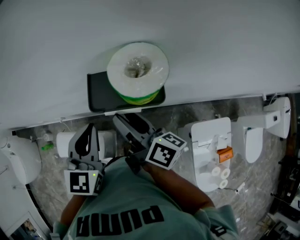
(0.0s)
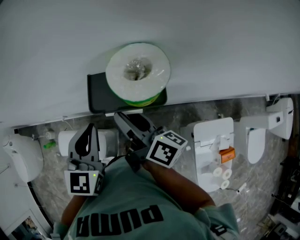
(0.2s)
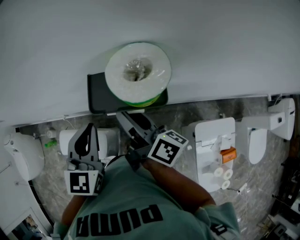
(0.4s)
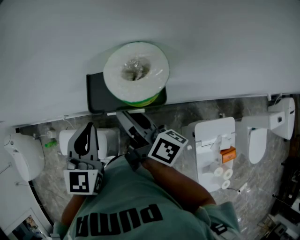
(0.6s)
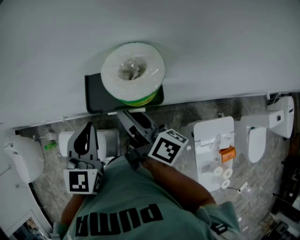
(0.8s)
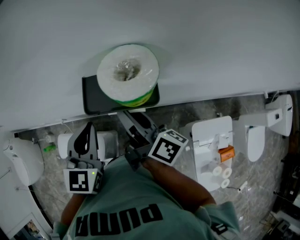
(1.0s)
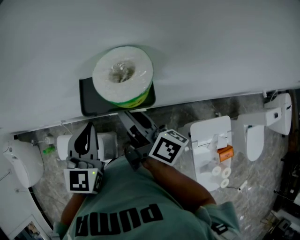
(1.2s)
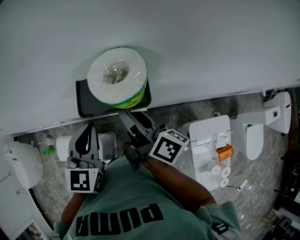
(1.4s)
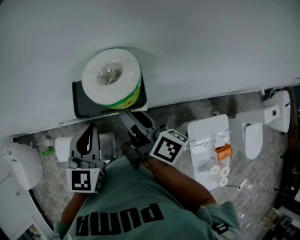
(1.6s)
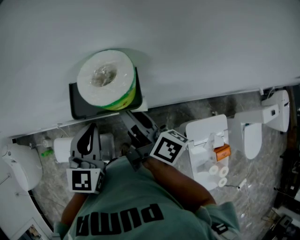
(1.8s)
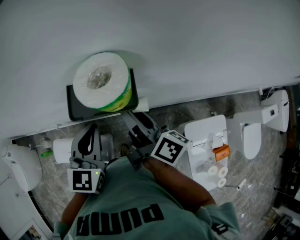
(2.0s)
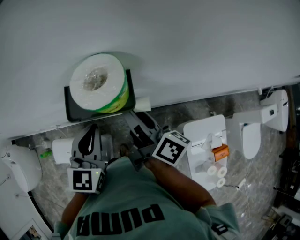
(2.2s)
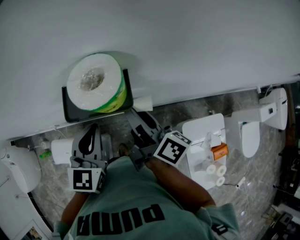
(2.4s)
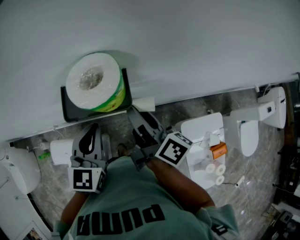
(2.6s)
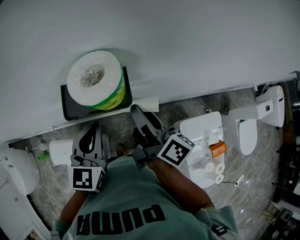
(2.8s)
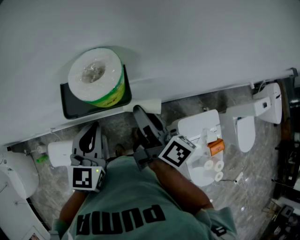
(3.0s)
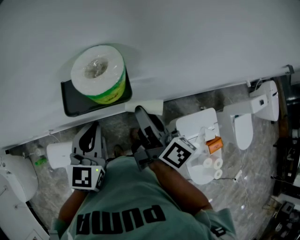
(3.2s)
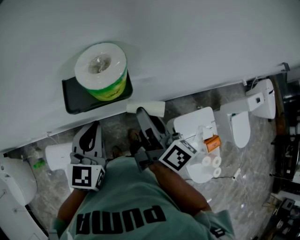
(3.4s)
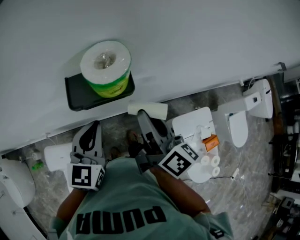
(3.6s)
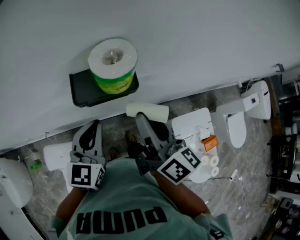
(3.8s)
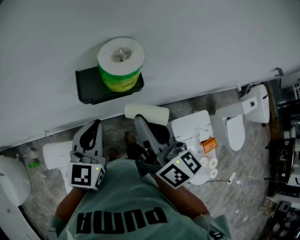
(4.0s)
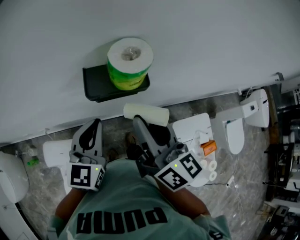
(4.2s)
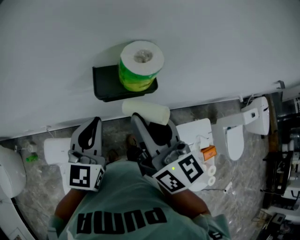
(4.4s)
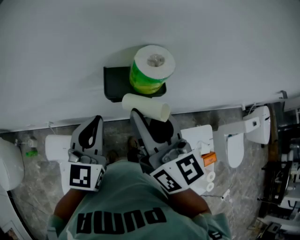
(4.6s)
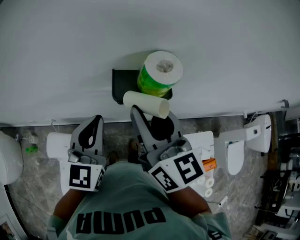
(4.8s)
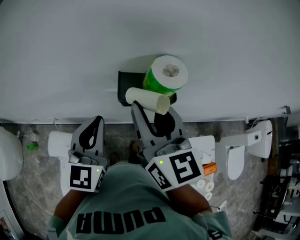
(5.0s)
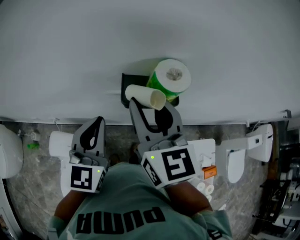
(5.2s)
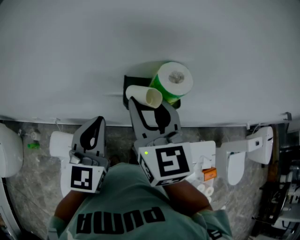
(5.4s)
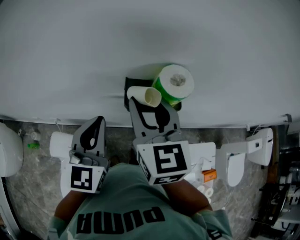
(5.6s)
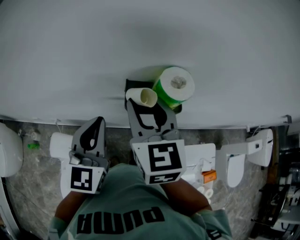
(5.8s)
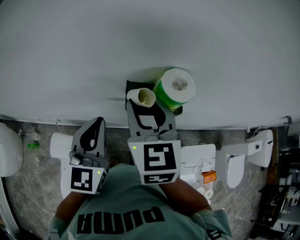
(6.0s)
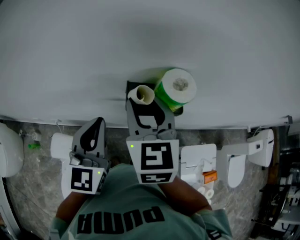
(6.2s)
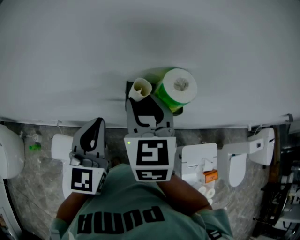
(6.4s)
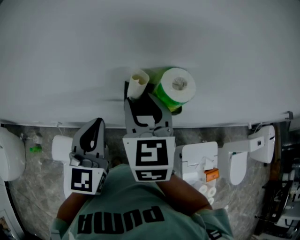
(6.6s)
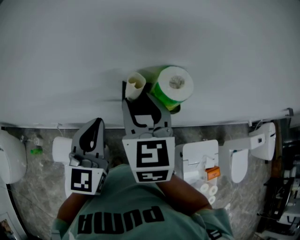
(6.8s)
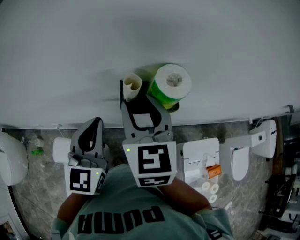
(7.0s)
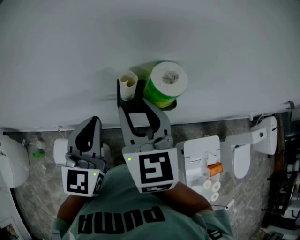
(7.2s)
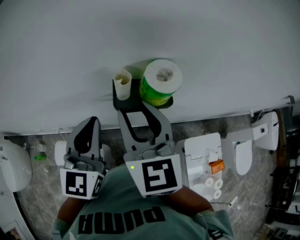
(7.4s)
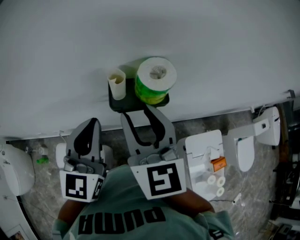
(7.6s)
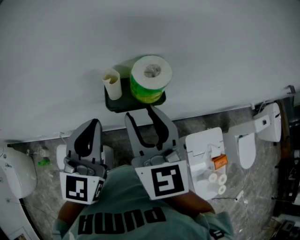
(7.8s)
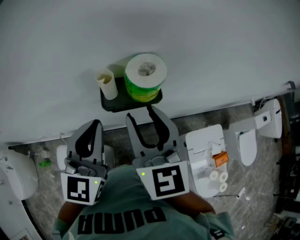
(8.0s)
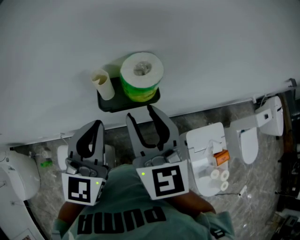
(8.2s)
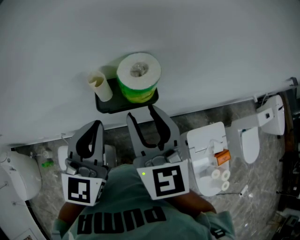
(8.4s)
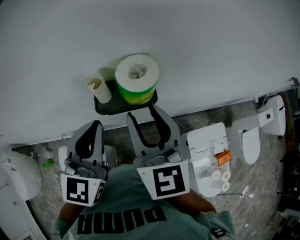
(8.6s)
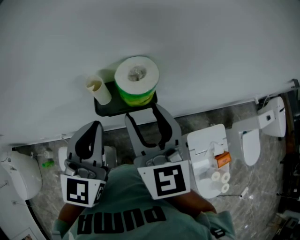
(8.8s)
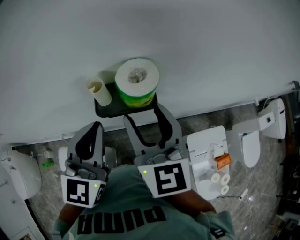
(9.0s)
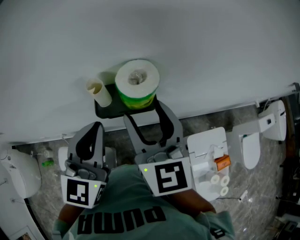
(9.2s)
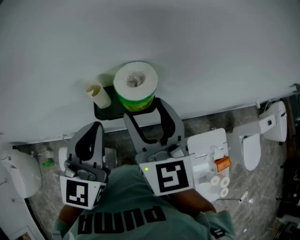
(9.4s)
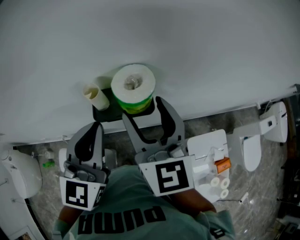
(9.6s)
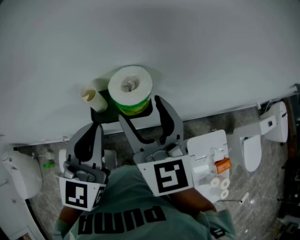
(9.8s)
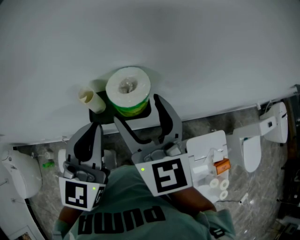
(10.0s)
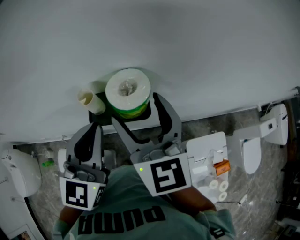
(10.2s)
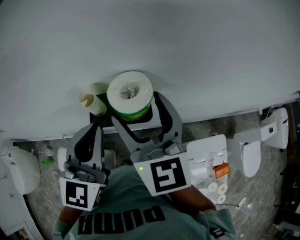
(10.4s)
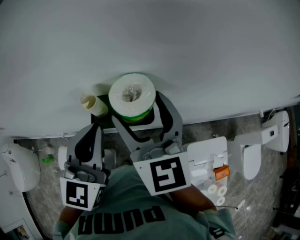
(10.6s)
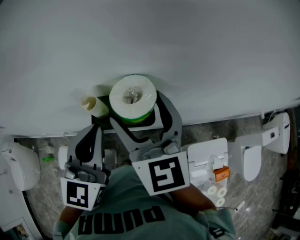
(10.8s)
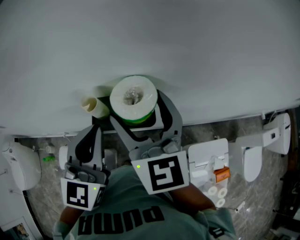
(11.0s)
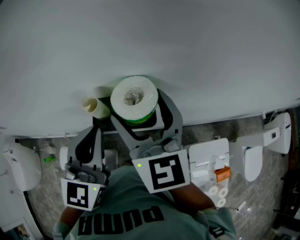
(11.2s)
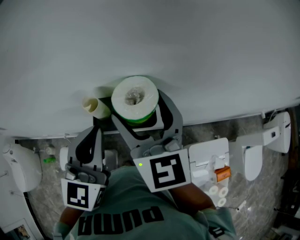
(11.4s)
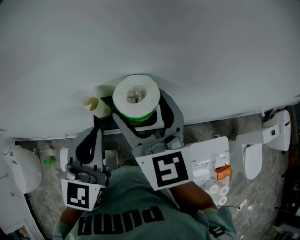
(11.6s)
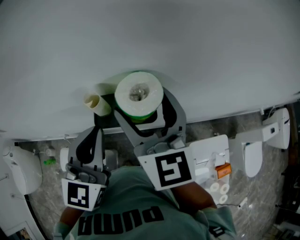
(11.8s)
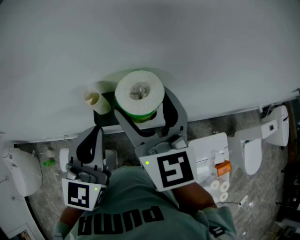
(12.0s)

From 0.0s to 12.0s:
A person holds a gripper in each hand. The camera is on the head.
From 0.0s to 1.6s: The right gripper travels to the right by about 5 cm.
From 1.6s to 3.0s: The right gripper moves to the right, roughly 10 cm.
From 3.0s to 4.4s: The left gripper travels to the left by some 5 cm. The right gripper is displaced upward, to the left and backward by some 15 cm, and swivels some 40 degrees.
From 4.4s to 6.0s: The left gripper heads to the left, covering about 5 cm, while the right gripper travels forward and to the left by roughly 10 cm, and changes its angle by roughly 40 degrees.
From 6.0s to 7.6s: The right gripper changes place by roughly 5 cm.
From 7.6s to 9.0s: Both grippers travel together to the right, some 5 cm.
From 9.0s to 10.4s: There are only small adjustments of the grippers.
From 10.4s to 12.0s: The grippers make only small movements.

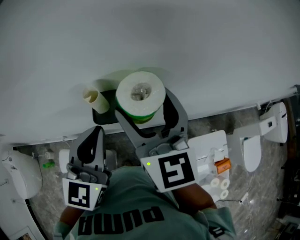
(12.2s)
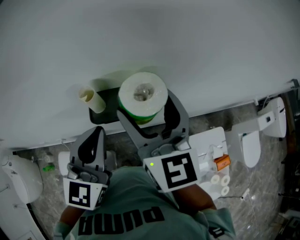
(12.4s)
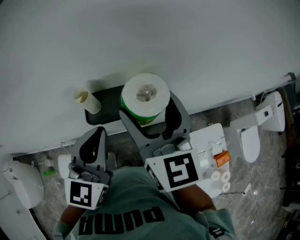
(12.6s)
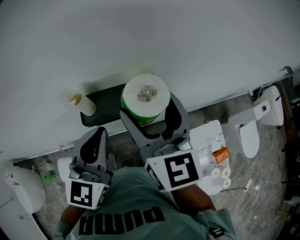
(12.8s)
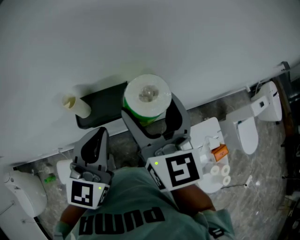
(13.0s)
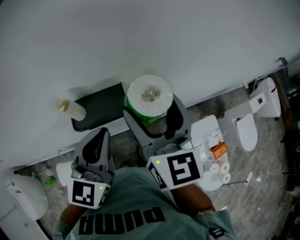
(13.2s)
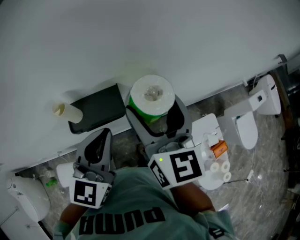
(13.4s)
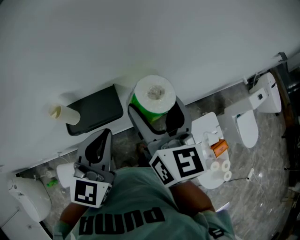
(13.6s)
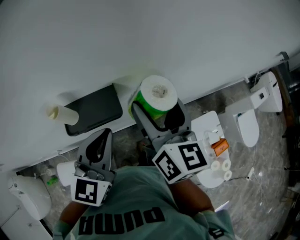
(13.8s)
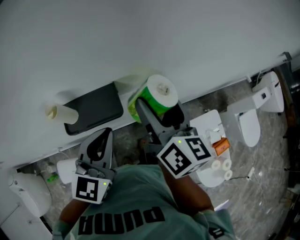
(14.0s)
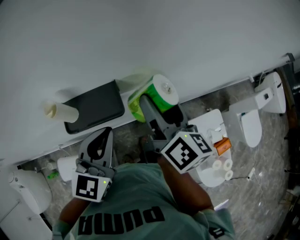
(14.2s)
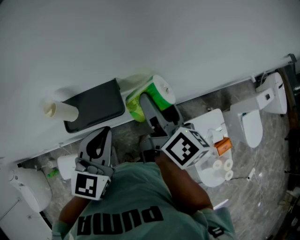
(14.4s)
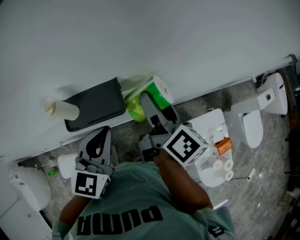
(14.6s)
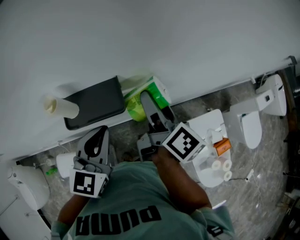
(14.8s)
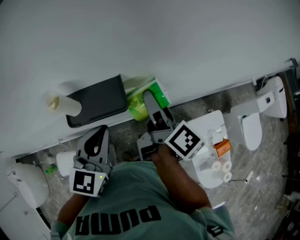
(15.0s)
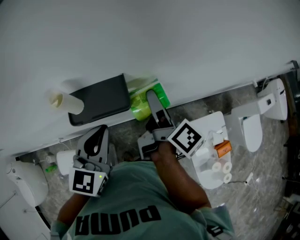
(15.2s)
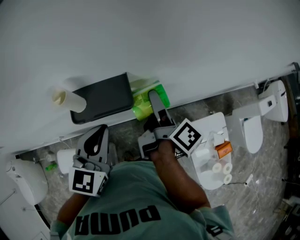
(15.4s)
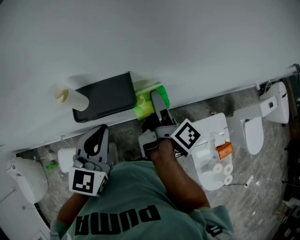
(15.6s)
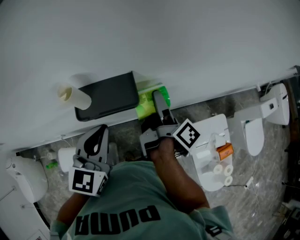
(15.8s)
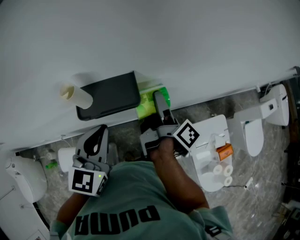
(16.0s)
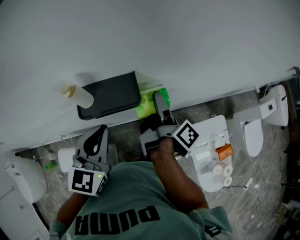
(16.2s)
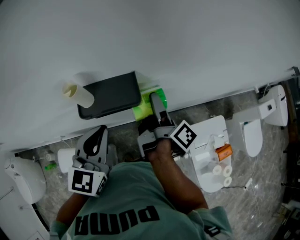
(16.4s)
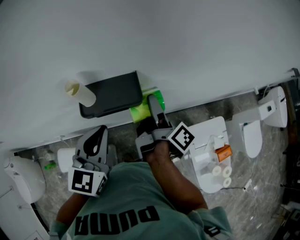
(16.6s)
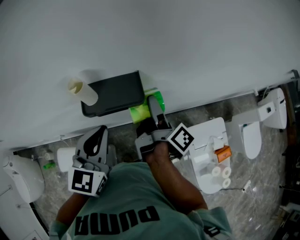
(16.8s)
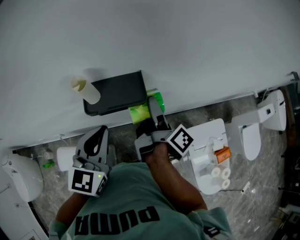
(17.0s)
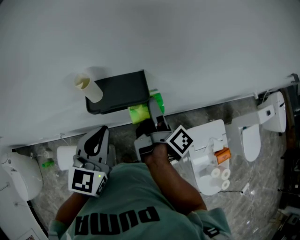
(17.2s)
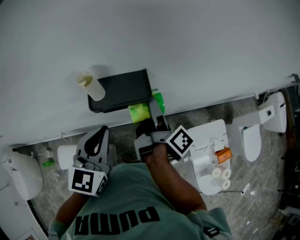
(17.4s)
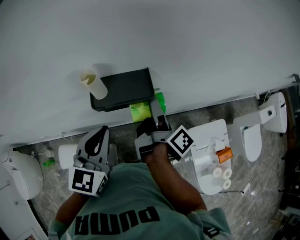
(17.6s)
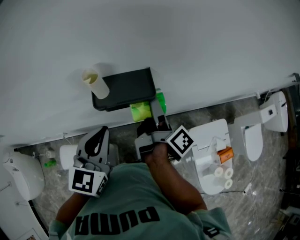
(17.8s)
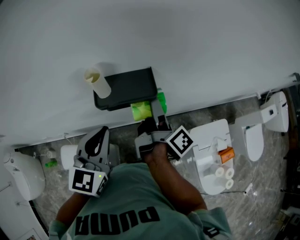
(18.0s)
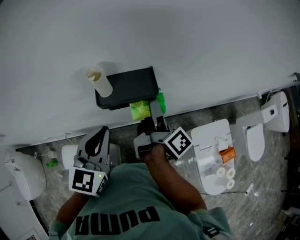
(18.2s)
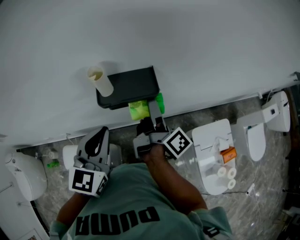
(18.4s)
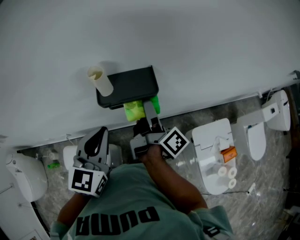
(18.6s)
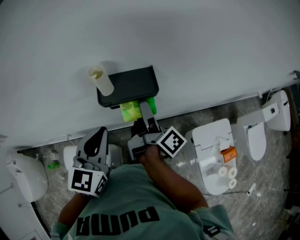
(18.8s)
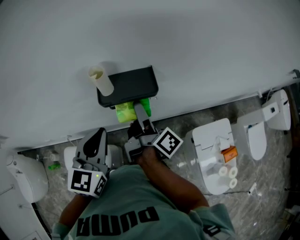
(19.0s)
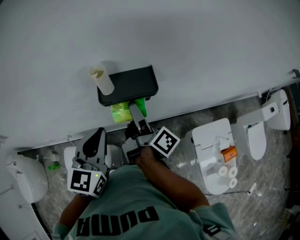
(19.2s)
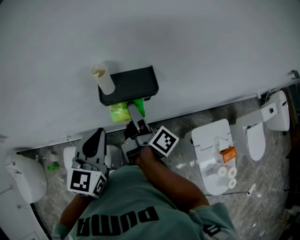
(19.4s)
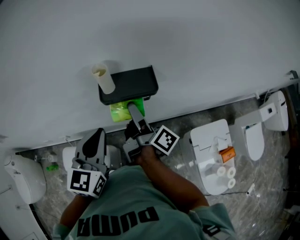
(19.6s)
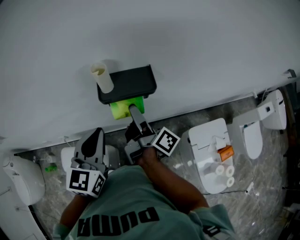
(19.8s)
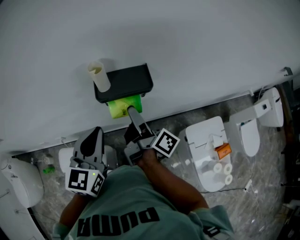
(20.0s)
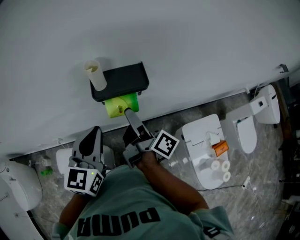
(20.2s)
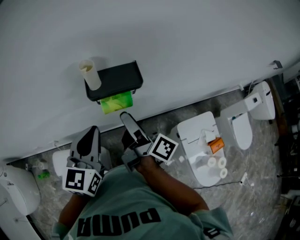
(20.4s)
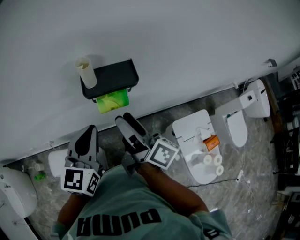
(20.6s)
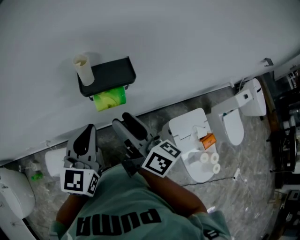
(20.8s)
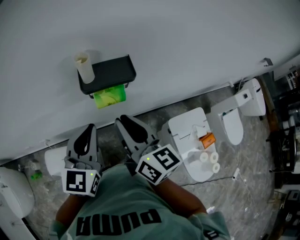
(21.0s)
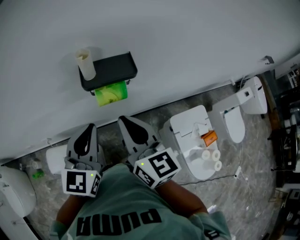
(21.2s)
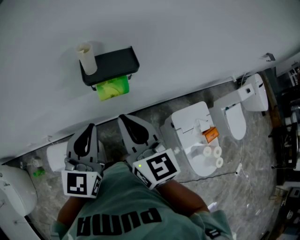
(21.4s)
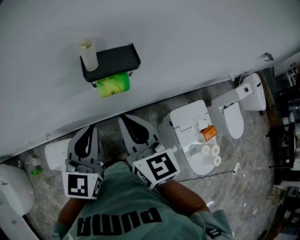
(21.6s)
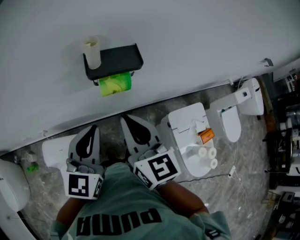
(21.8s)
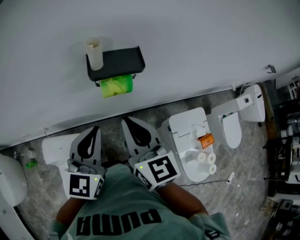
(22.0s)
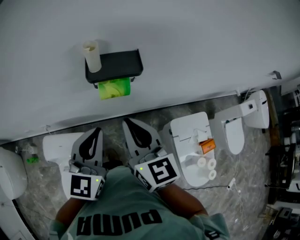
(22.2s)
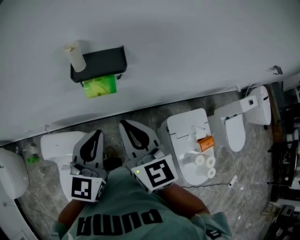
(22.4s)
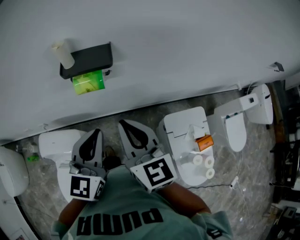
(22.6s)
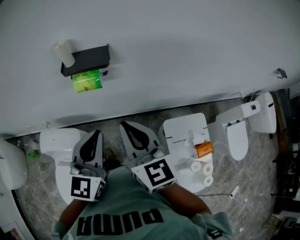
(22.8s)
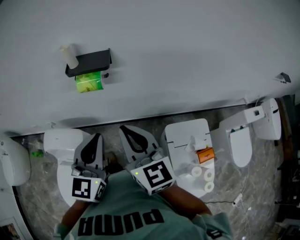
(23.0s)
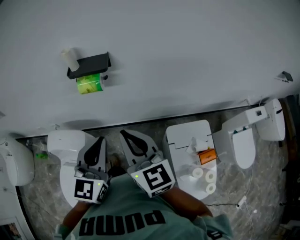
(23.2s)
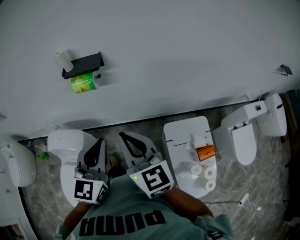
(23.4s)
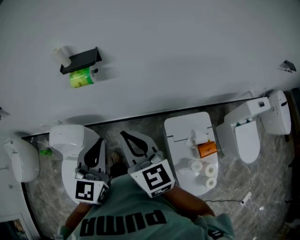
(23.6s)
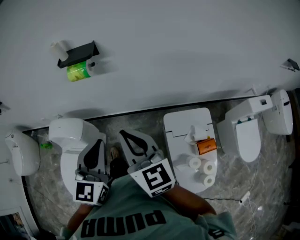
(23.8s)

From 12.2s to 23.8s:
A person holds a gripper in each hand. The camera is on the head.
From 12.2s to 13.6s: The two grippers go approximately 10 cm to the right.
From 13.6s to 15.0s: The left gripper goes roughly 5 cm downward, while the right gripper goes about 10 cm downward, and rotates around the line of its fingers by some 50 degrees, clockwise from behind.
From 15.0s to 16.6s: The right gripper moves approximately 5 cm, and rotates about 30 degrees.
From 16.6s to 18.0s: The grippers stay close to where they were, moving slightly.
From 18.0s to 19.4s: The right gripper shifts about 10 cm to the left.
From 19.4s to 21.0s: The right gripper is displaced backward and upward by roughly 10 cm, rotates around the line of its fingers by approximately 60 degrees, counterclockwise from behind, and closes its fingers.
From 21.0s to 22.4s: The left gripper moves to the right and backward, some 10 cm. The right gripper moves approximately 5 cm, and rotates roughly 20 degrees.
From 22.4s to 23.8s: Both grippers move backward and to the right, about 20 cm.
